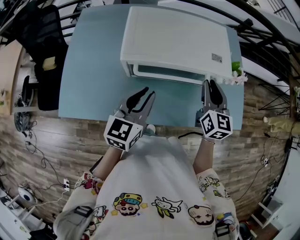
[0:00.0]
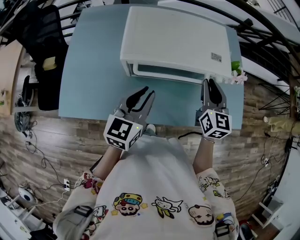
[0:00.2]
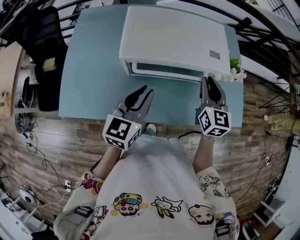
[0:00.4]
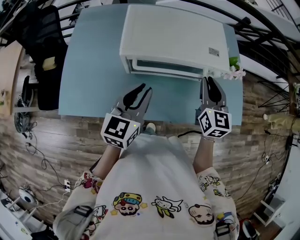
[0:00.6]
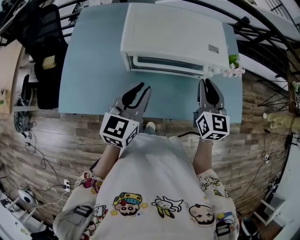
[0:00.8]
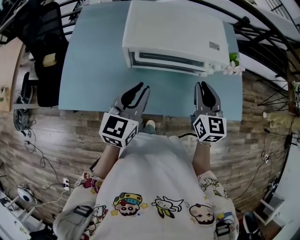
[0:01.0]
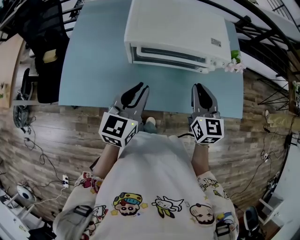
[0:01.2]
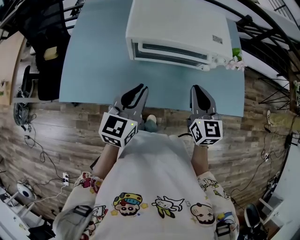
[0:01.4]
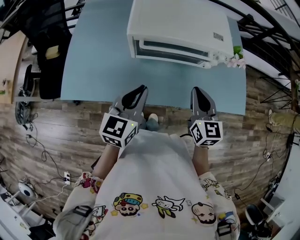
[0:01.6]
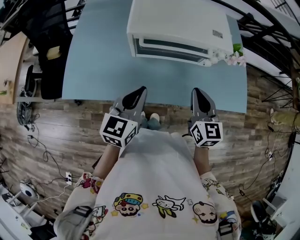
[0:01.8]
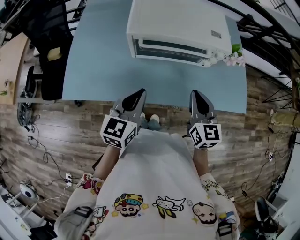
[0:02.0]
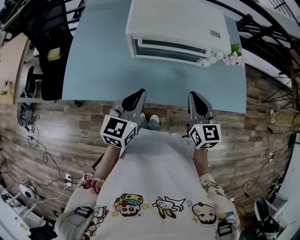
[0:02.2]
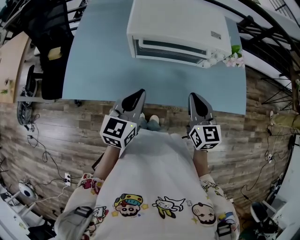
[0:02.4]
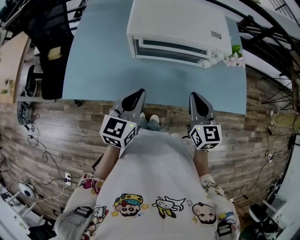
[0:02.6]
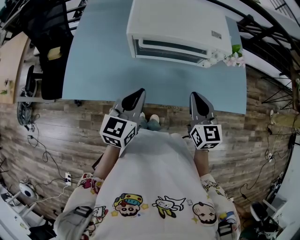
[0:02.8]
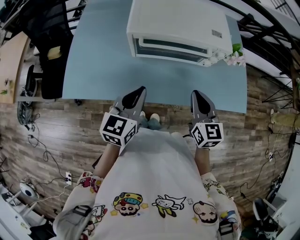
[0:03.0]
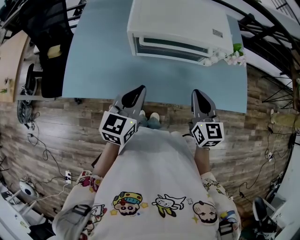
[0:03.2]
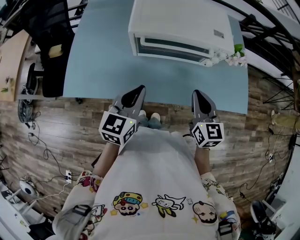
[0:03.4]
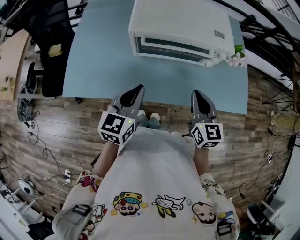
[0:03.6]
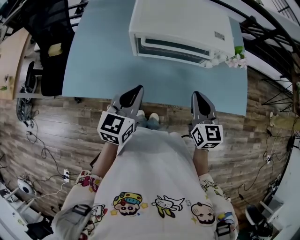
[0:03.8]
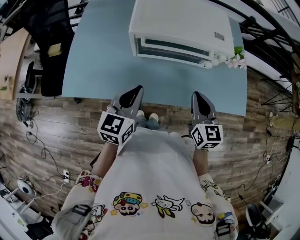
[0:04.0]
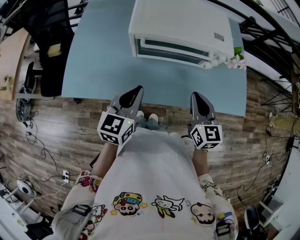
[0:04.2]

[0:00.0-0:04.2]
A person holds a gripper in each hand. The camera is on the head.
0.0 to 1.4 s: The right gripper travels backward by about 10 cm; the left gripper heads backward, covering some 10 cm.
1.4 to 4.2 s: The grippers move only a little.

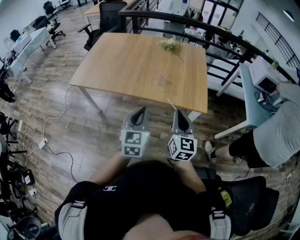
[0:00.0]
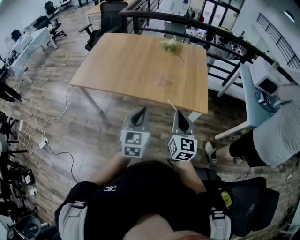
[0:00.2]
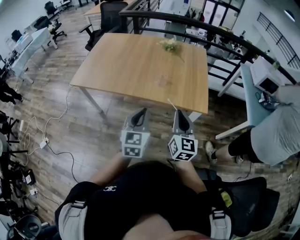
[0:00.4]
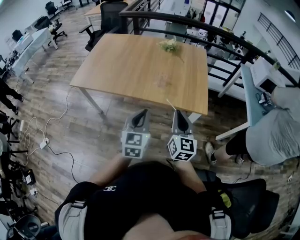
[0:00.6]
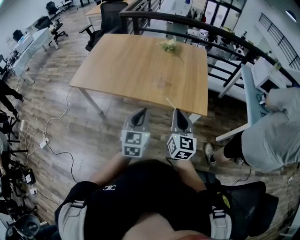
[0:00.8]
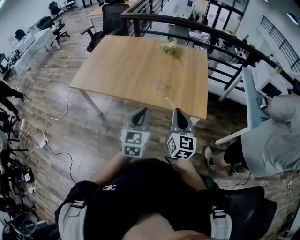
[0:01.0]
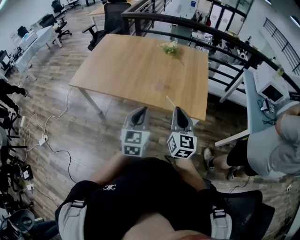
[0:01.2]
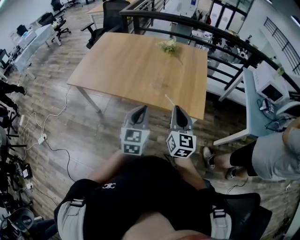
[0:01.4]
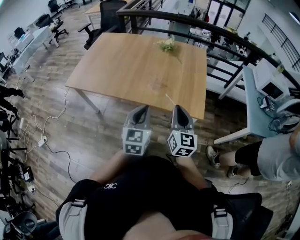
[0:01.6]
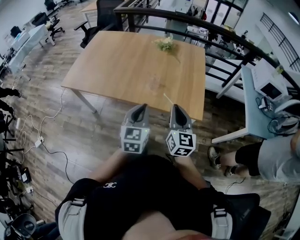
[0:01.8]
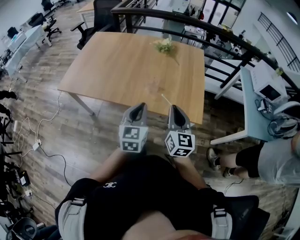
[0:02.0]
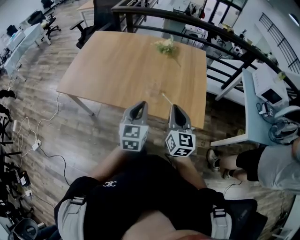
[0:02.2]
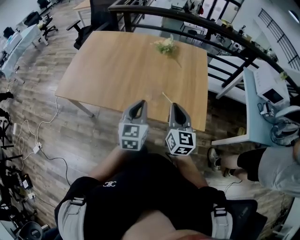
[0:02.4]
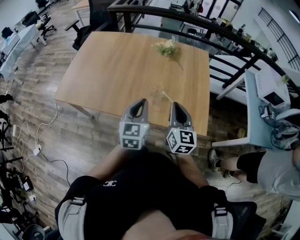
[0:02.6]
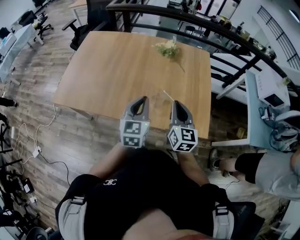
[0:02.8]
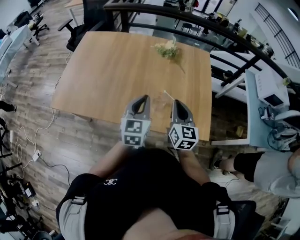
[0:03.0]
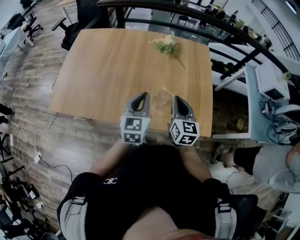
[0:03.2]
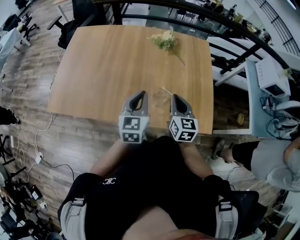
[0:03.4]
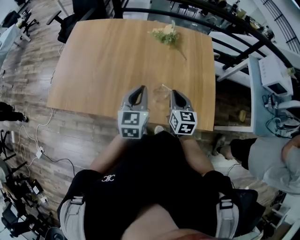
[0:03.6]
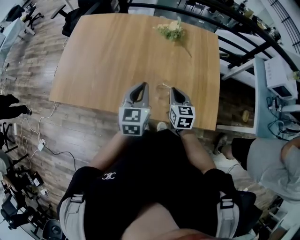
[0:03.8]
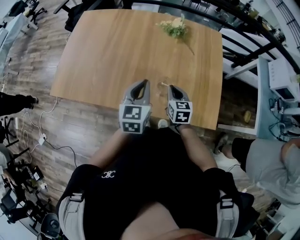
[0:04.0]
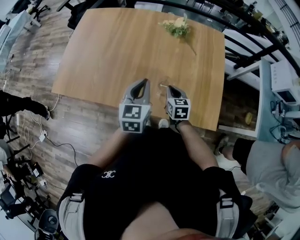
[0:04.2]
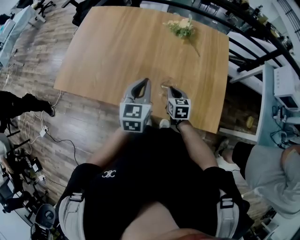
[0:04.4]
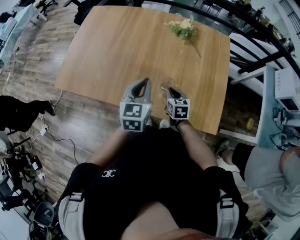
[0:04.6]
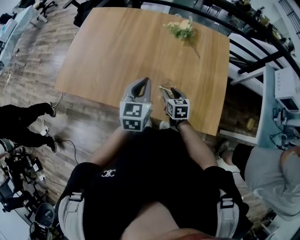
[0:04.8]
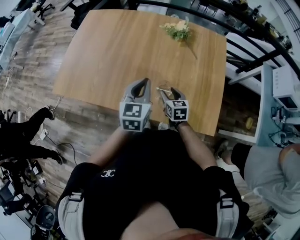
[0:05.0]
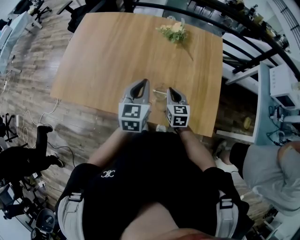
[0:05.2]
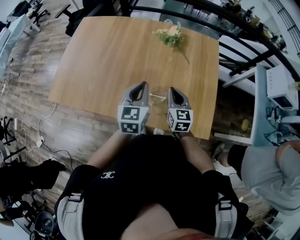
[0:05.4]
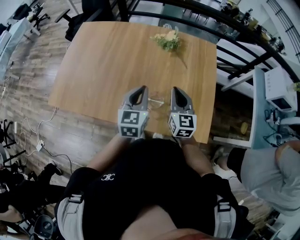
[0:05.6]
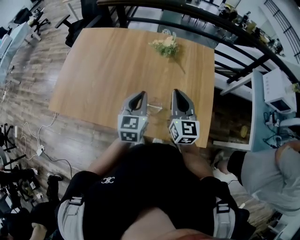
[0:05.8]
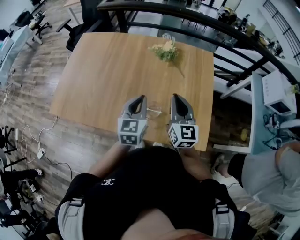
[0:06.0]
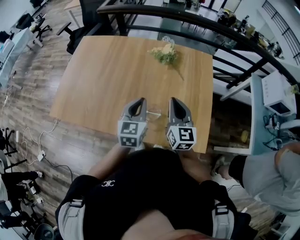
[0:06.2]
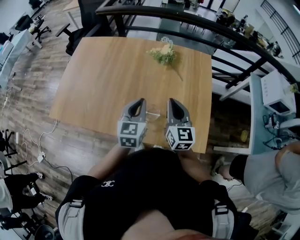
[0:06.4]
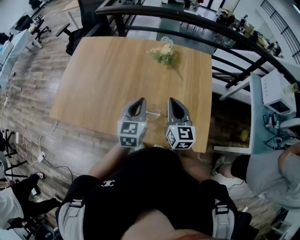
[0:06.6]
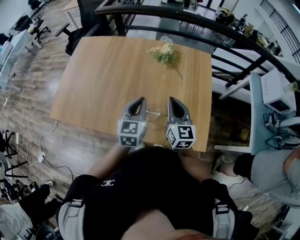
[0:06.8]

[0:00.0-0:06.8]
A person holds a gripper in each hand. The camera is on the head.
0.0 to 1.4 s: The left gripper moves to the right, about 5 cm. The right gripper shifts approximately 5 cm forward.
1.4 to 2.8 s: Both grippers travel together forward, about 25 cm.
2.8 to 4.0 s: The left gripper is displaced forward by approximately 10 cm; the right gripper shifts about 20 cm downward and forward, and changes its angle by approximately 20 degrees.
4.0 to 5.4 s: The right gripper shifts some 5 cm upward, and opens and closes again.
5.4 to 6.8 s: The right gripper travels upward by roughly 10 cm.

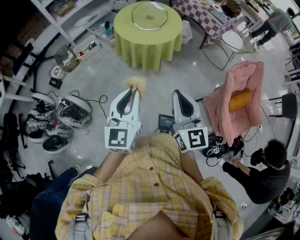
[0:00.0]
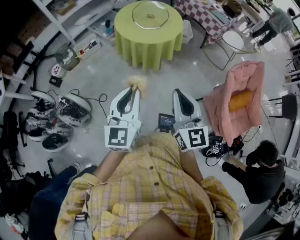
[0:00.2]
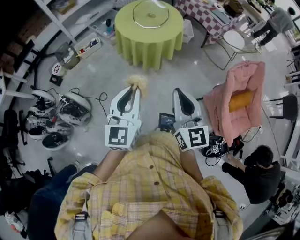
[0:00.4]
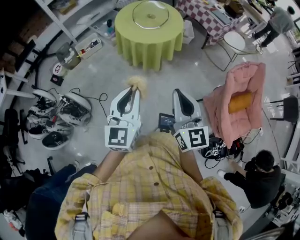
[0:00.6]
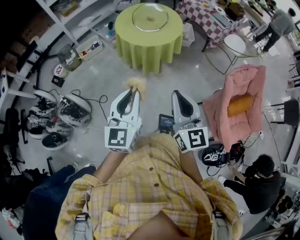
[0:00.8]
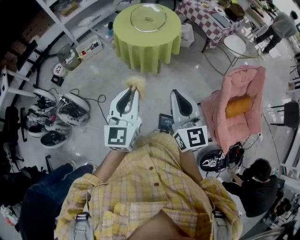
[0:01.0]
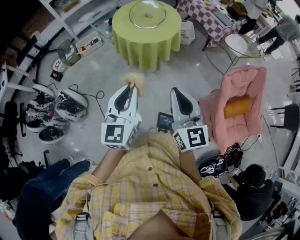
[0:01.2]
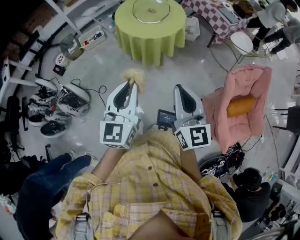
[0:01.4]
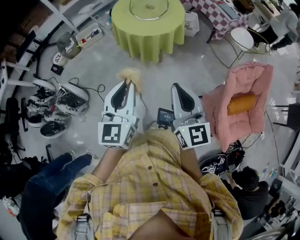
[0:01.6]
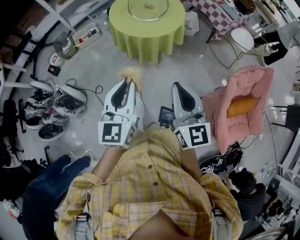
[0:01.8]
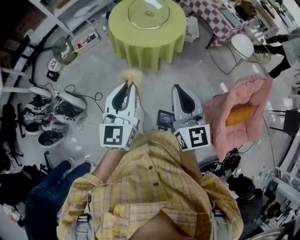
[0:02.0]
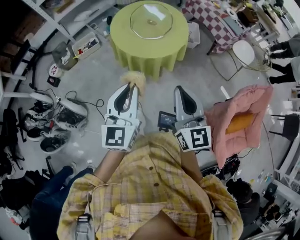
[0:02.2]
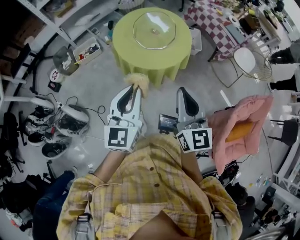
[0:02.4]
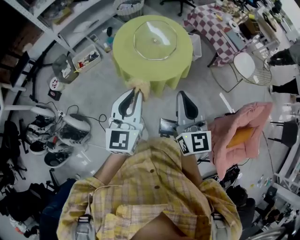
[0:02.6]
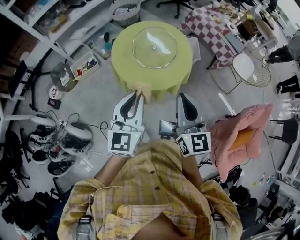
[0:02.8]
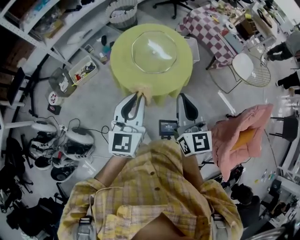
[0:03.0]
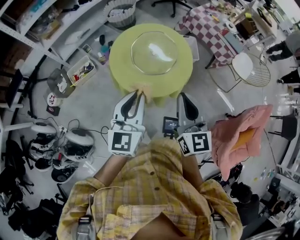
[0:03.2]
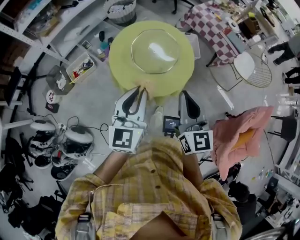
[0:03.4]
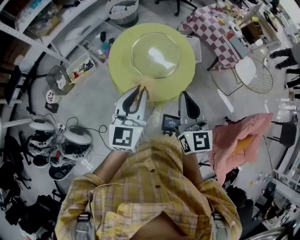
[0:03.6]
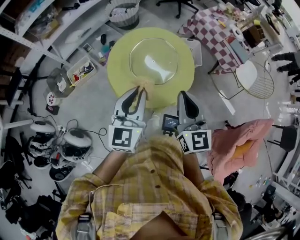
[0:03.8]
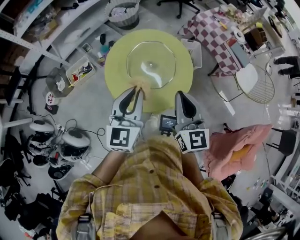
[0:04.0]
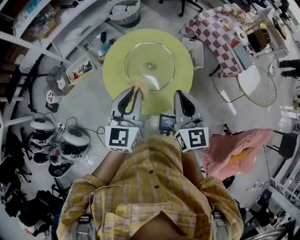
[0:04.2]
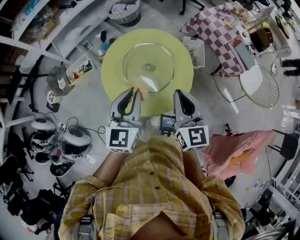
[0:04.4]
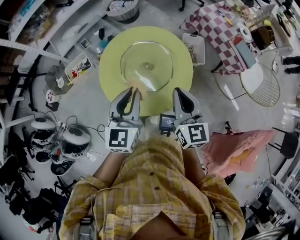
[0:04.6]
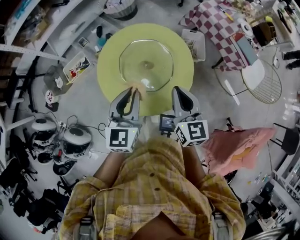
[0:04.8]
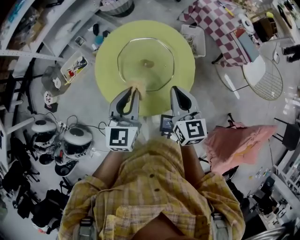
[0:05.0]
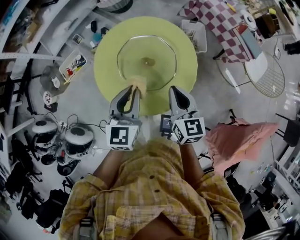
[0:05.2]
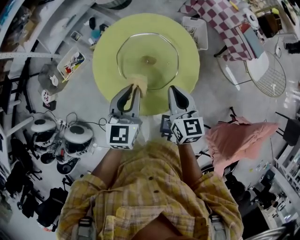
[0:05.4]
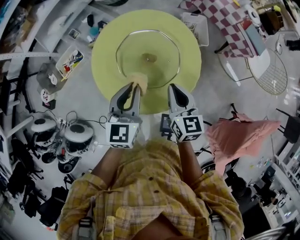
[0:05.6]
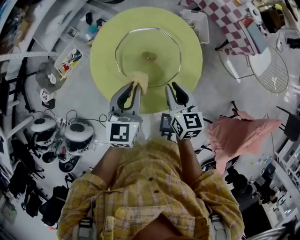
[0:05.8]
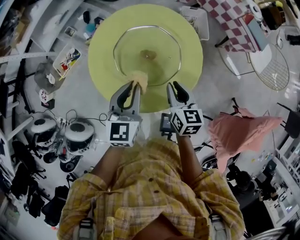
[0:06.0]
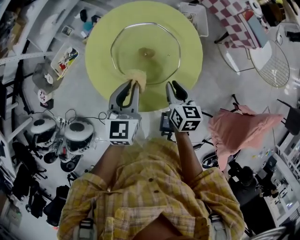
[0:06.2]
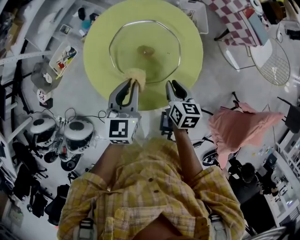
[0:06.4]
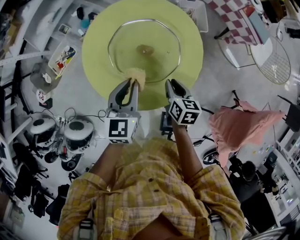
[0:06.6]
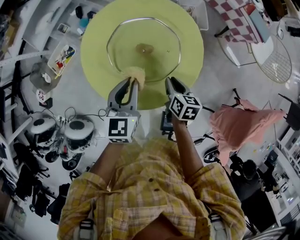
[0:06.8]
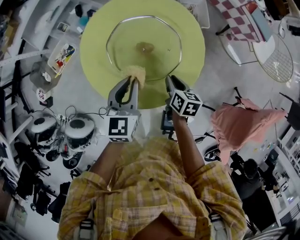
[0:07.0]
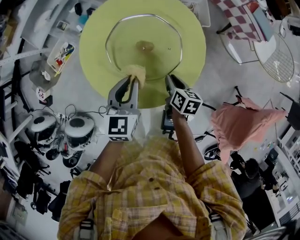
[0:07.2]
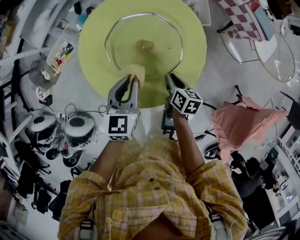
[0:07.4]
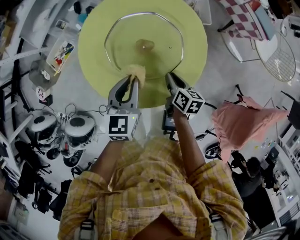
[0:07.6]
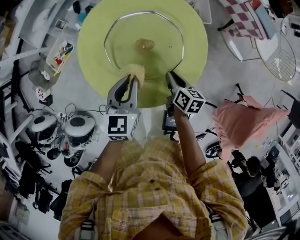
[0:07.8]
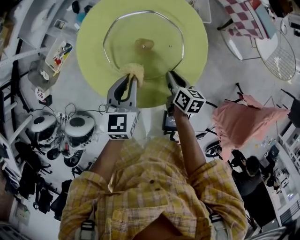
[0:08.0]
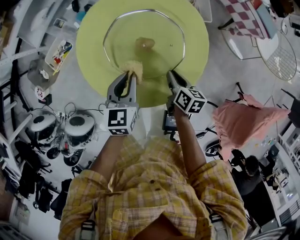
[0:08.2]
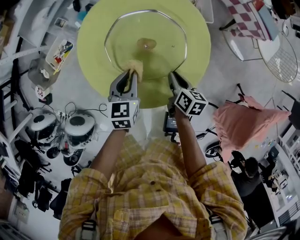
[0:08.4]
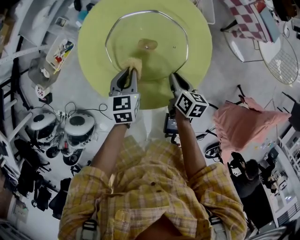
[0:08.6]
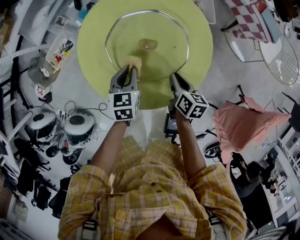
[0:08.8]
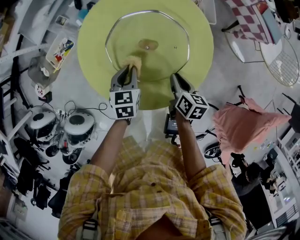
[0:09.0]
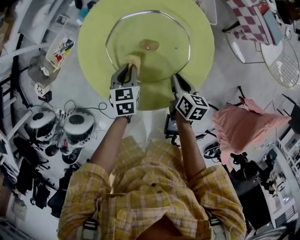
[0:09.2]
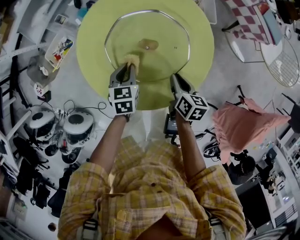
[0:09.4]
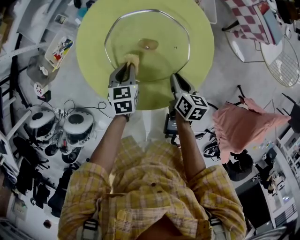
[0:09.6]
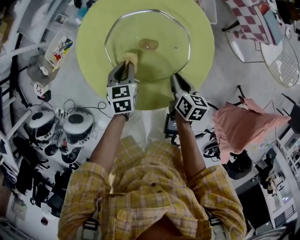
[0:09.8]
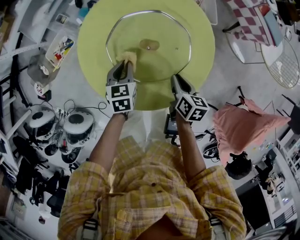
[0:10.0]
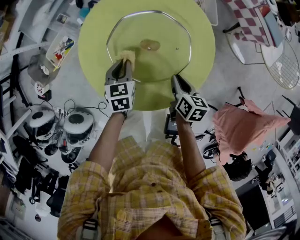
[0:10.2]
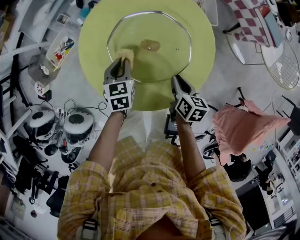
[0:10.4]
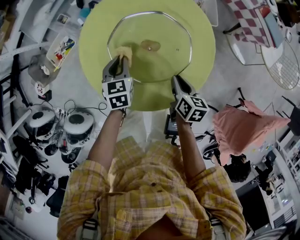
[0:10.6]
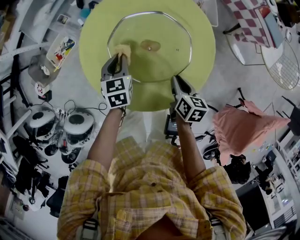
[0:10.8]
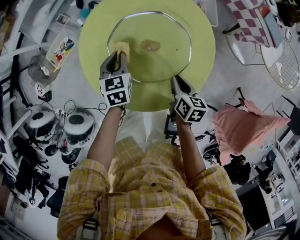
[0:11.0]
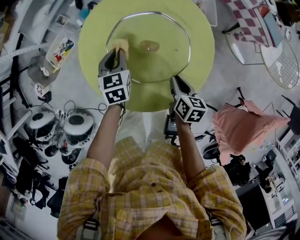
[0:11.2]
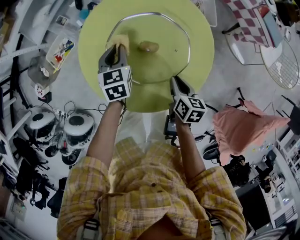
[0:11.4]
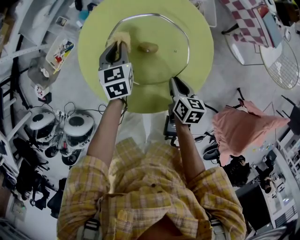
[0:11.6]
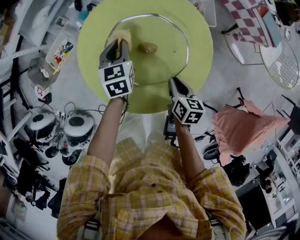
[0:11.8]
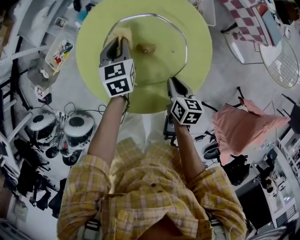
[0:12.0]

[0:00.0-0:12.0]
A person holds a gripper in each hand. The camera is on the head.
0.0 to 1.6 s: Both grippers travel together to the right, some 10 cm.
1.6 to 3.0 s: The pair of grippers is taken forward, approximately 40 cm.
3.0 to 4.4 s: Both grippers move forward, approximately 25 cm.
4.4 to 6.0 s: The right gripper shifts about 20 cm downward, and swivels about 30 degrees. Meanwhile the left gripper shifts some 20 cm downward and forward.
6.0 to 7.6 s: The right gripper shifts about 15 cm downward, and rotates some 30 degrees. The left gripper heads downward, covering about 10 cm.
7.6 to 9.0 s: The left gripper moves downward, roughly 15 cm.
9.0 to 10.4 s: The left gripper changes place by approximately 5 cm.
10.4 to 12.0 s: The left gripper shifts some 10 cm forward.

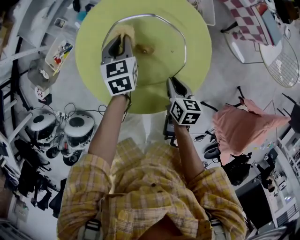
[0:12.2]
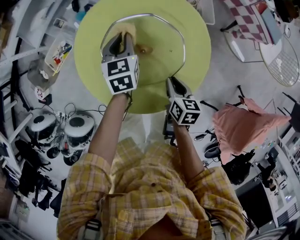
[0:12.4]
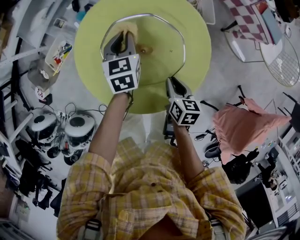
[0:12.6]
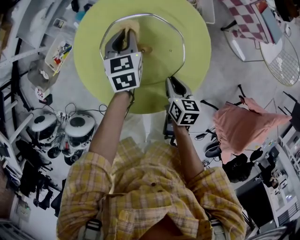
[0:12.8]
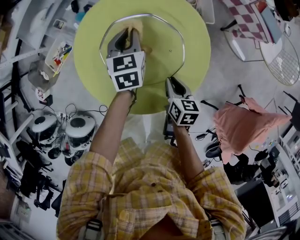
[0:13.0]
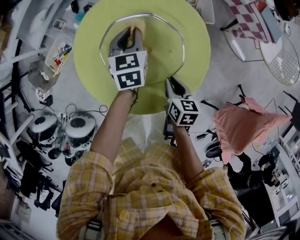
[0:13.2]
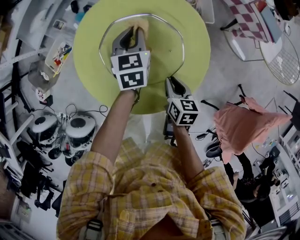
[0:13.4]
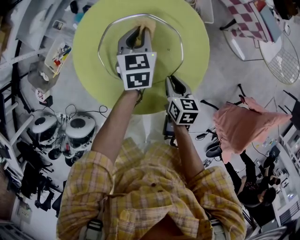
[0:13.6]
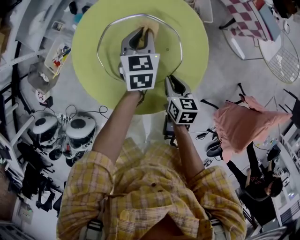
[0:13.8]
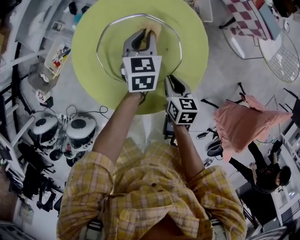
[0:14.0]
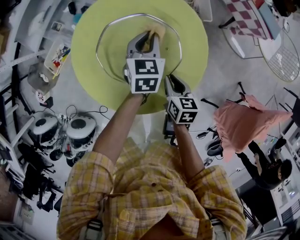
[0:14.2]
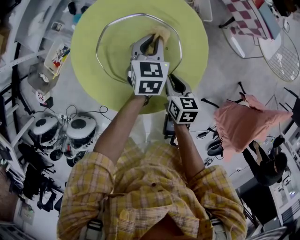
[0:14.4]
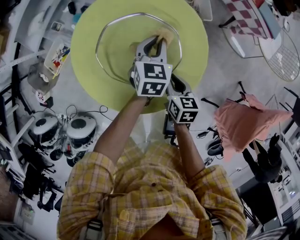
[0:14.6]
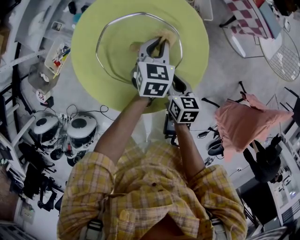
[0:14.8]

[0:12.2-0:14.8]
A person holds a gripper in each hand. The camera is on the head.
12.2 to 13.4 s: The left gripper goes about 5 cm to the right.
13.4 to 14.8 s: The left gripper goes approximately 10 cm to the right and backward.
